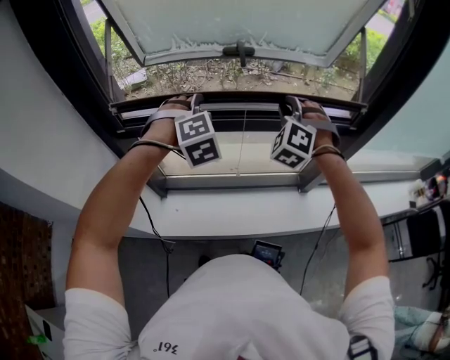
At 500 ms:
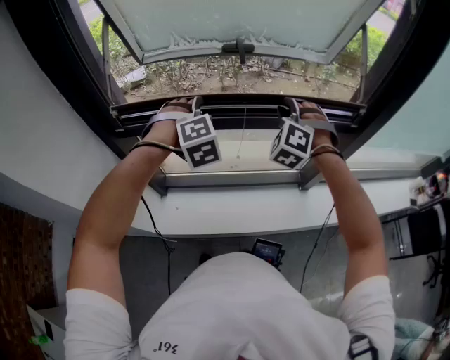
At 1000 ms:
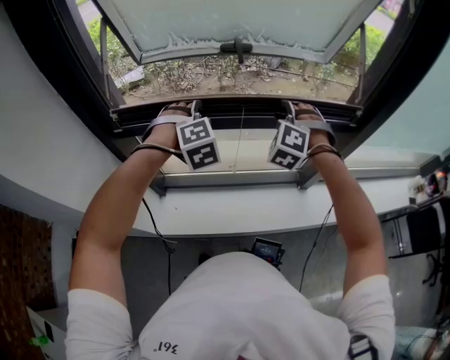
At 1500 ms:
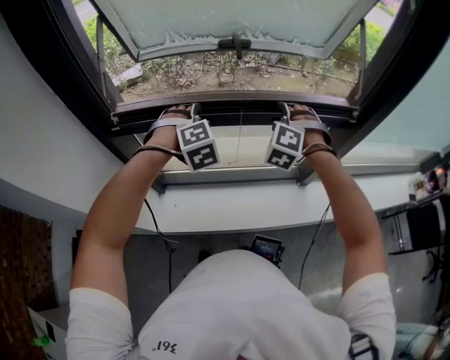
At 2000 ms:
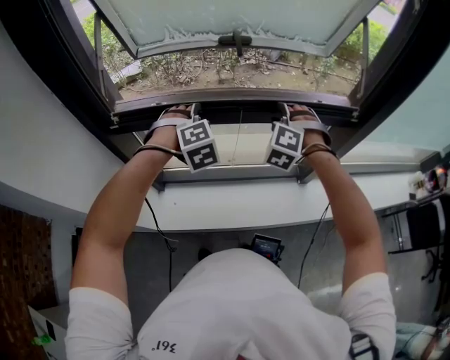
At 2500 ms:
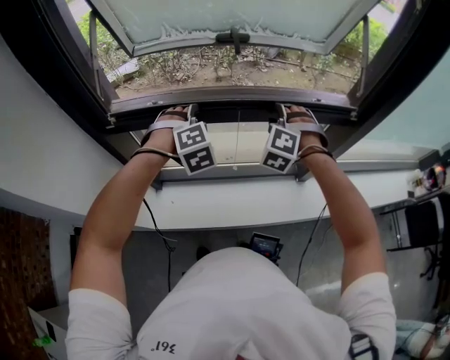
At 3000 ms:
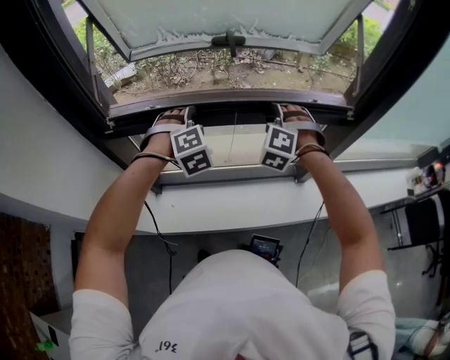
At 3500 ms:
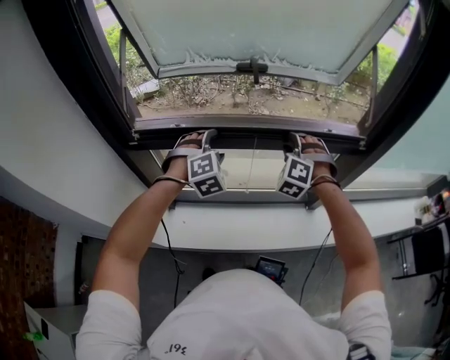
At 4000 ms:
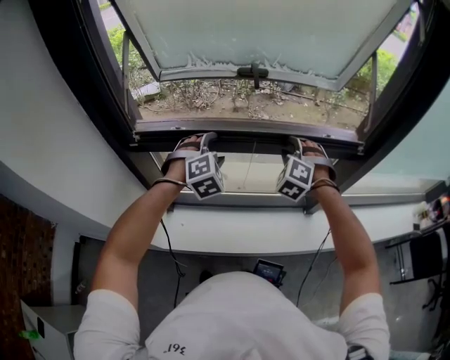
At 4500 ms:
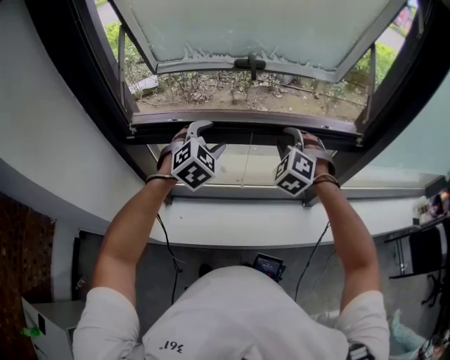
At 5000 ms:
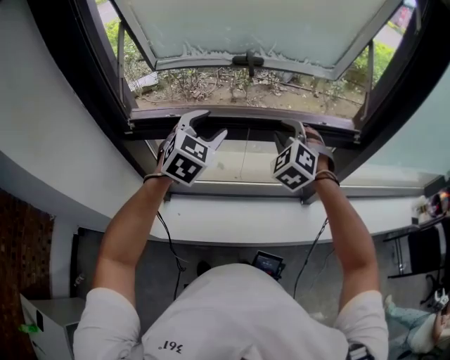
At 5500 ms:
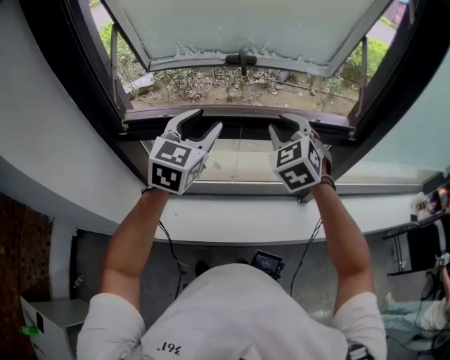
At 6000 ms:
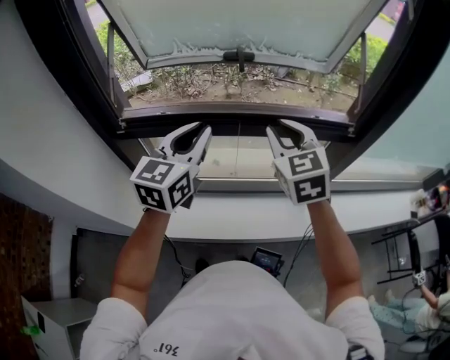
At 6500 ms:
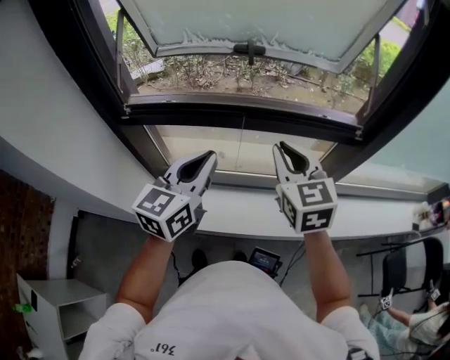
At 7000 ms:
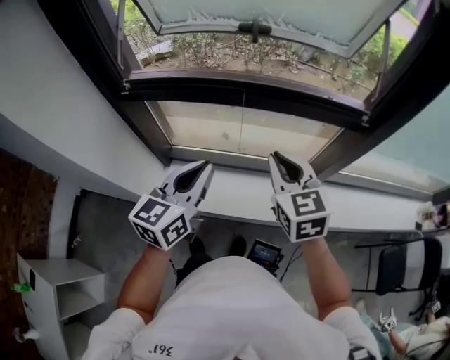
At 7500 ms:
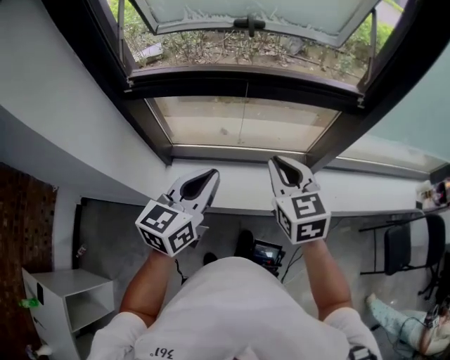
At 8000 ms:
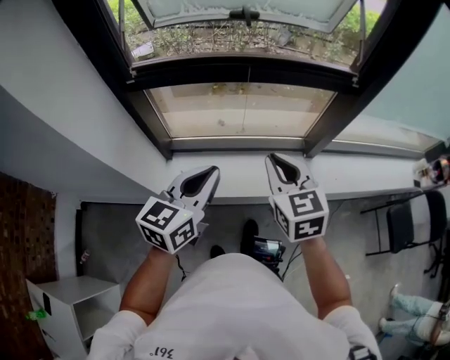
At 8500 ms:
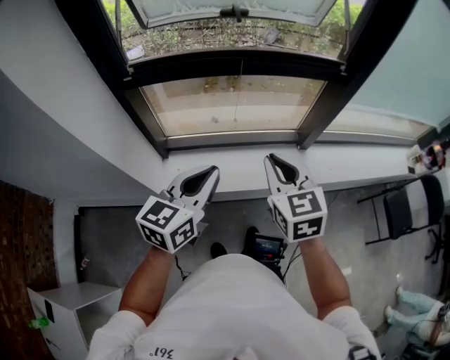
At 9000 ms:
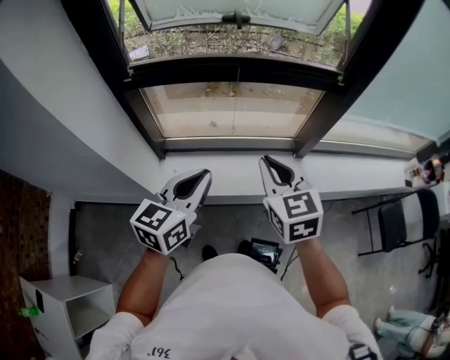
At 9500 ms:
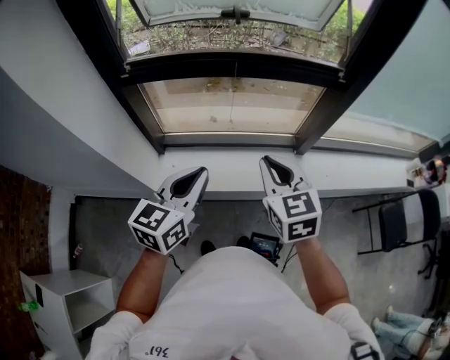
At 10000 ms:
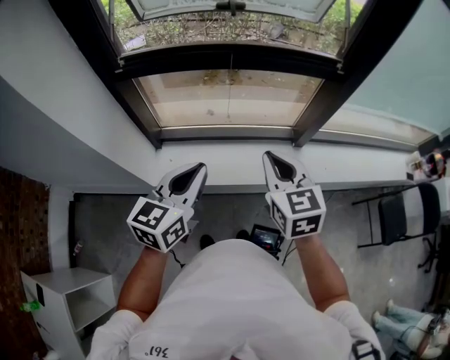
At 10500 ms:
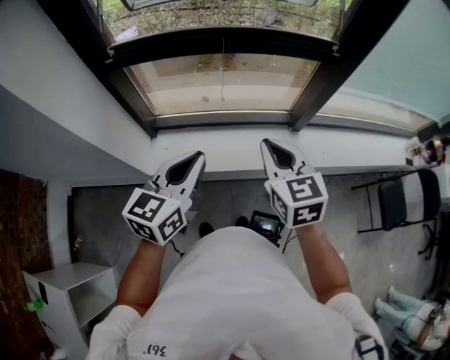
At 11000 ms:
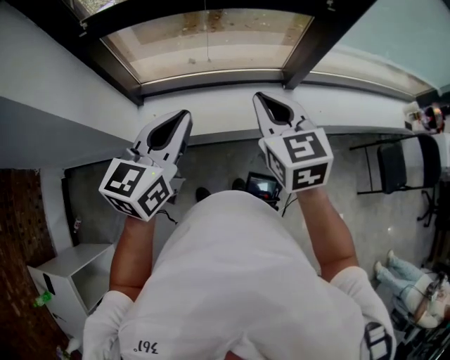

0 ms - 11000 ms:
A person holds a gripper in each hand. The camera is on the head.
0 ms - 2000 ms: The grippers both shift downward by some 10 cm.
2000 ms - 3500 ms: The grippers stay close to where they were, moving slightly.
3500 ms - 5500 ms: The grippers both shift upward by some 15 cm. The right gripper changes its angle by some 40 degrees; the left gripper rotates around the line of its fingers by roughly 50 degrees, counterclockwise from behind.
5500 ms - 7500 ms: The left gripper travels backward and downward by approximately 25 cm, swivels about 30 degrees, and closes up. Meanwhile the right gripper shifts about 20 cm backward, and turns by approximately 30 degrees.
7500 ms - 9000 ms: The two grippers go roughly 10 cm backward.
9000 ms - 11000 ms: The grippers stay close to where they were, moving slightly.

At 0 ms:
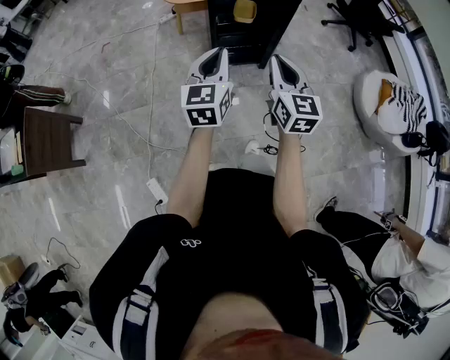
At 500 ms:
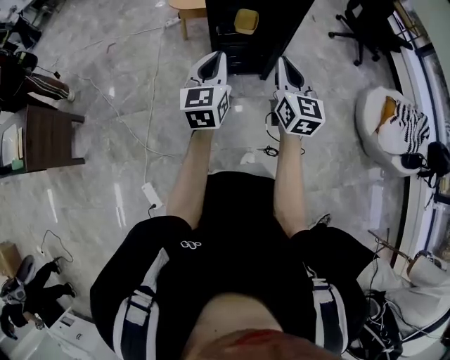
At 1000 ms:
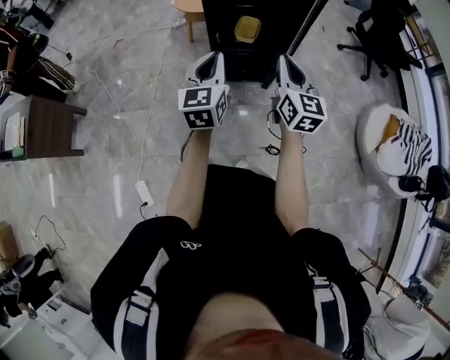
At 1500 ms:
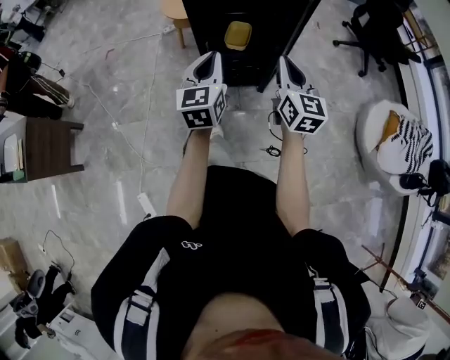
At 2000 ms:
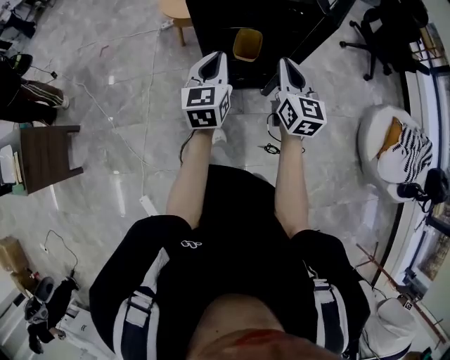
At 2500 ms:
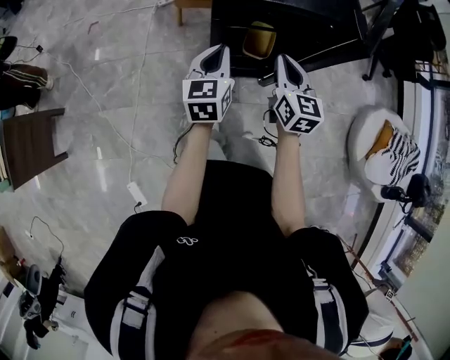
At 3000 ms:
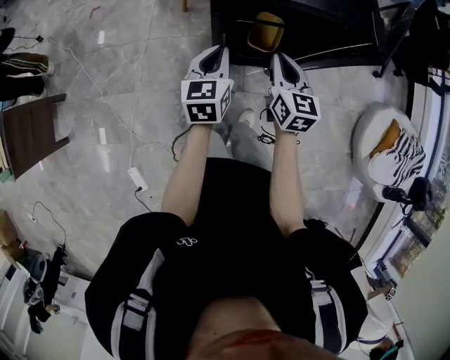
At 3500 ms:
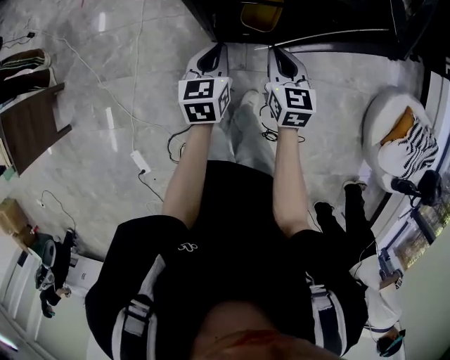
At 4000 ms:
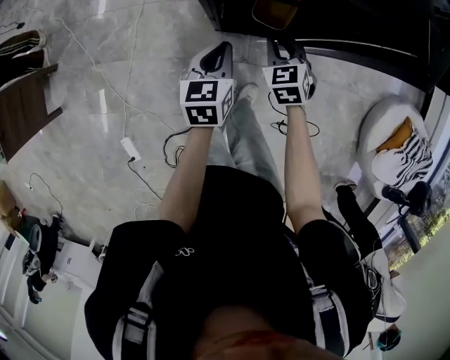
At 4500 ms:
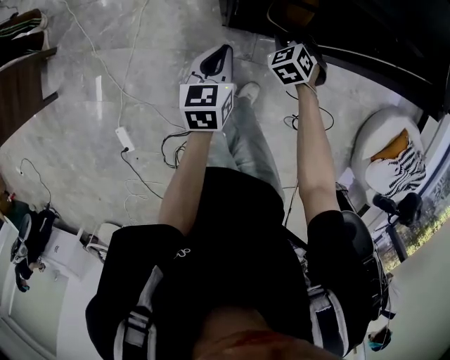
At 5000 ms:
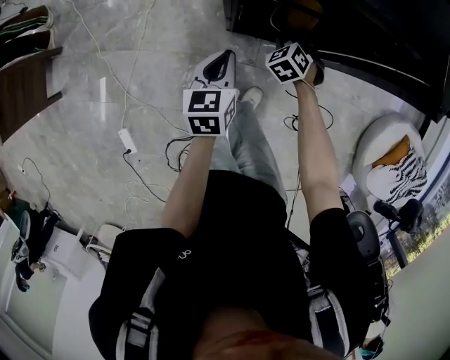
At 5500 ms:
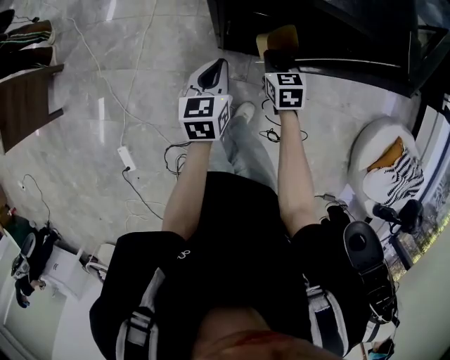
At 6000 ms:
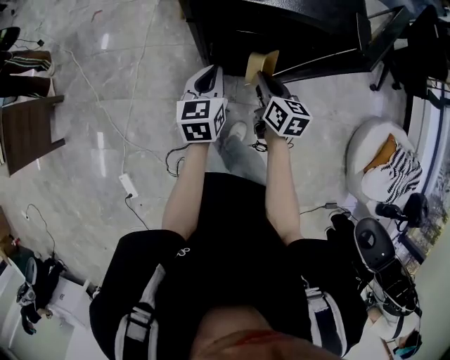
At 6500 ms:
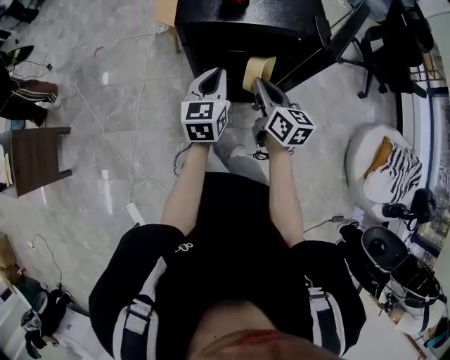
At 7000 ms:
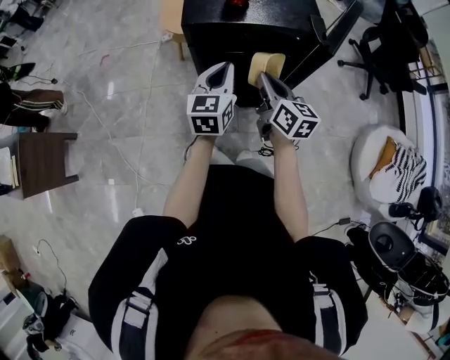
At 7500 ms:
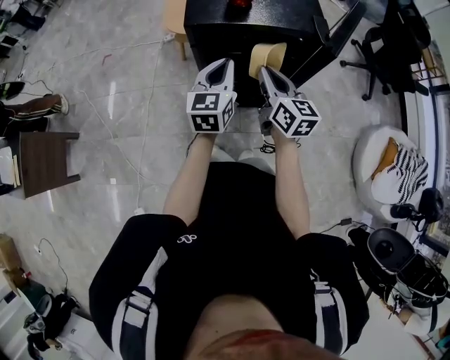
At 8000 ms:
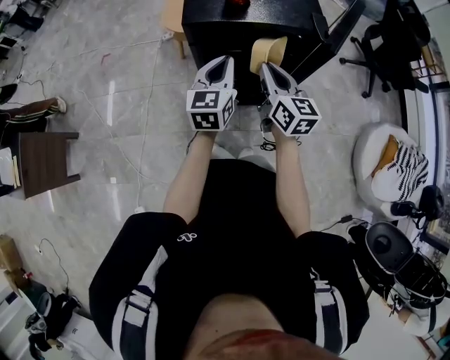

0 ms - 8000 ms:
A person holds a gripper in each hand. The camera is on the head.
0 ms - 2000 ms: Both grippers move forward, roughly 35 cm.
2000 ms - 4000 ms: The right gripper is displaced downward and forward by approximately 30 cm, and points its fingers roughly 40 degrees further downward, while the left gripper is displaced downward by about 20 cm, and turns by roughly 20 degrees.
4000 ms - 6000 ms: Both grippers travel together upward, some 10 cm. The right gripper rolls clockwise, seen from behind, by some 50 degrees.
6000 ms - 8000 ms: The right gripper heads upward, covering about 15 cm, and swivels approximately 20 degrees; the left gripper moves upward and to the right, roughly 15 cm.

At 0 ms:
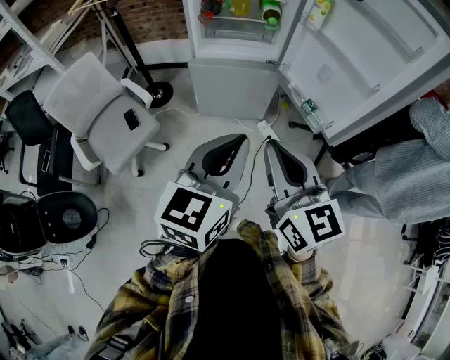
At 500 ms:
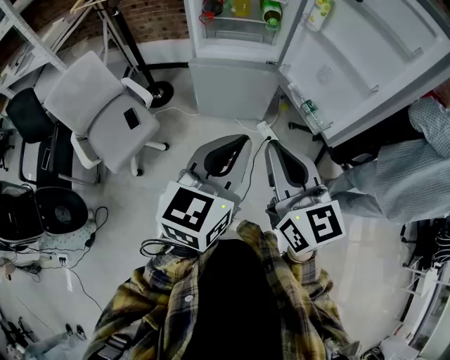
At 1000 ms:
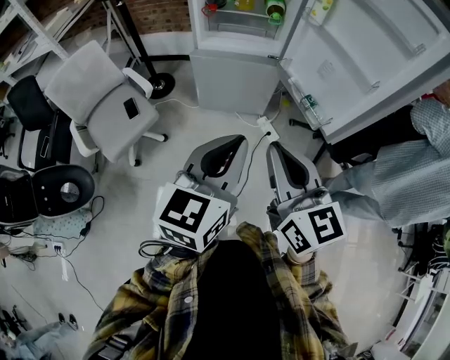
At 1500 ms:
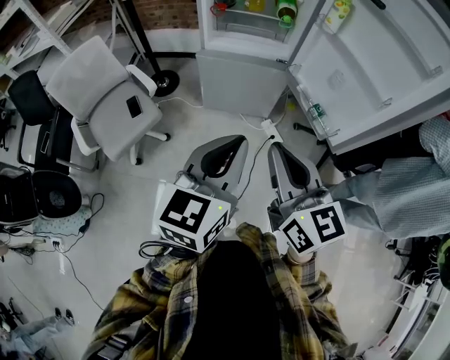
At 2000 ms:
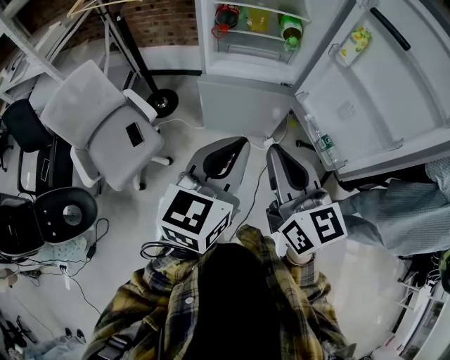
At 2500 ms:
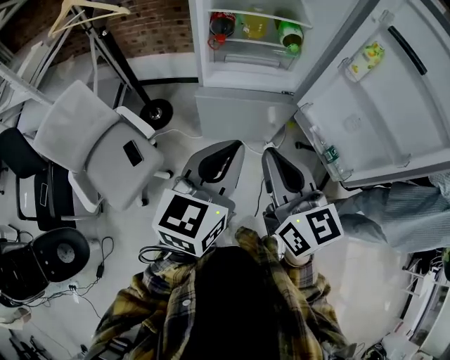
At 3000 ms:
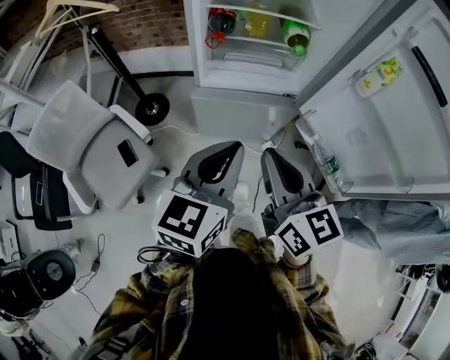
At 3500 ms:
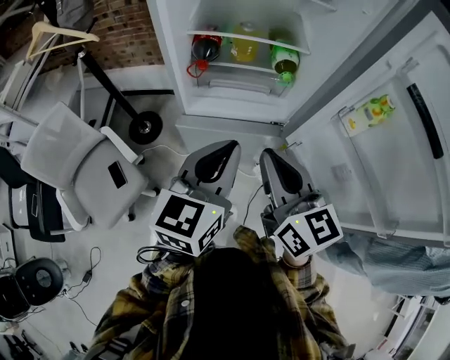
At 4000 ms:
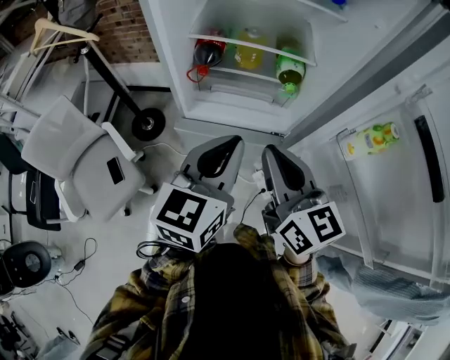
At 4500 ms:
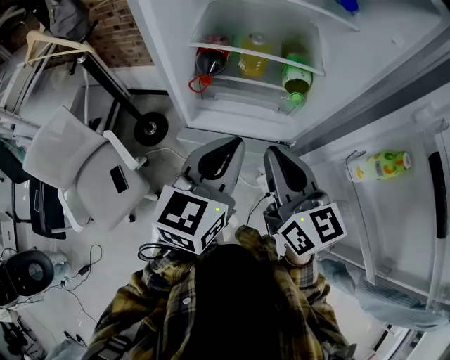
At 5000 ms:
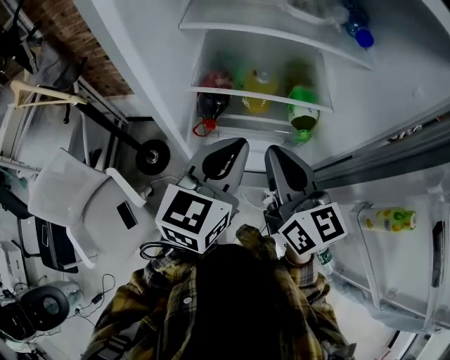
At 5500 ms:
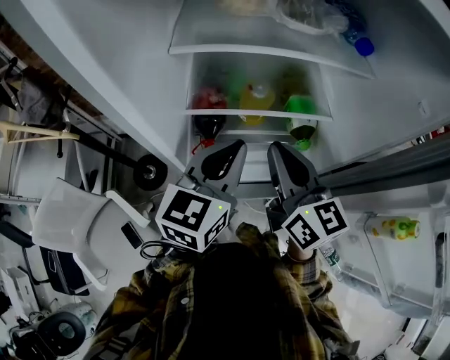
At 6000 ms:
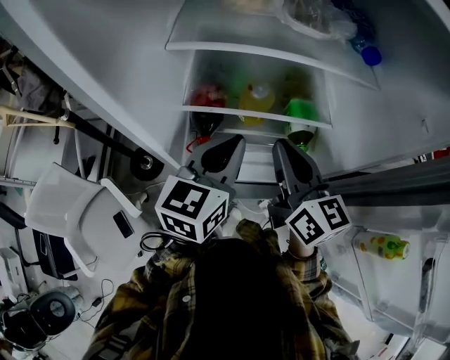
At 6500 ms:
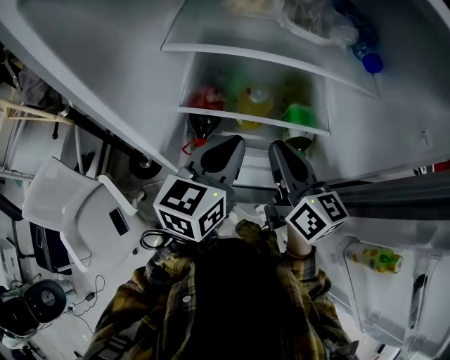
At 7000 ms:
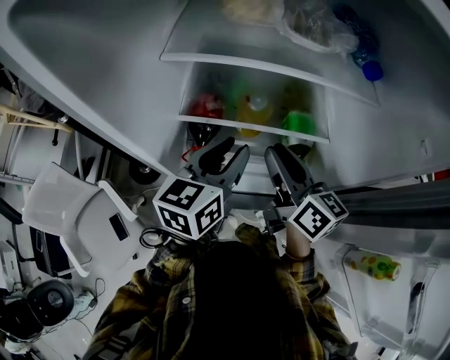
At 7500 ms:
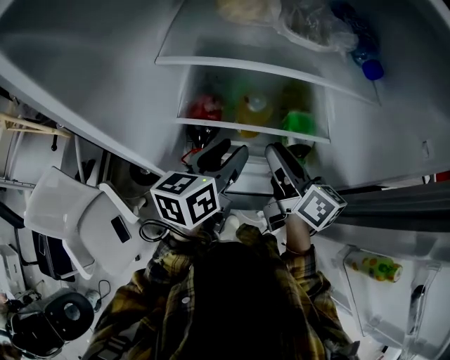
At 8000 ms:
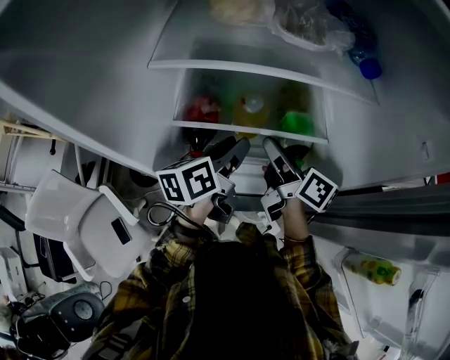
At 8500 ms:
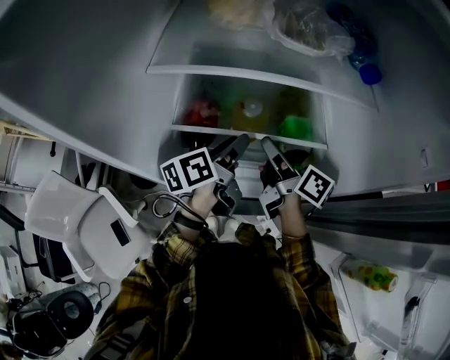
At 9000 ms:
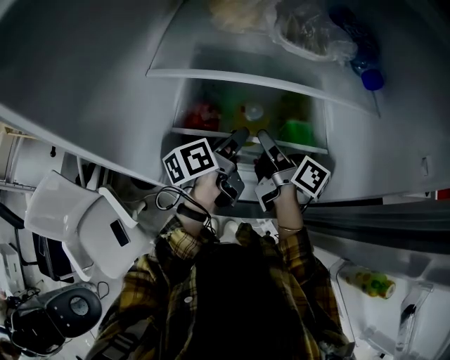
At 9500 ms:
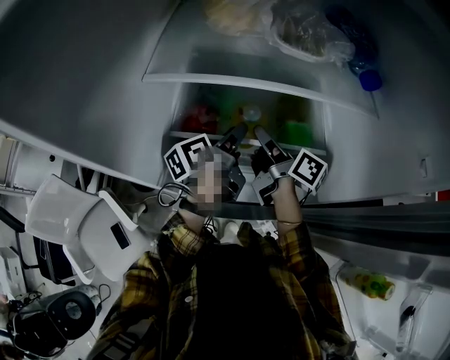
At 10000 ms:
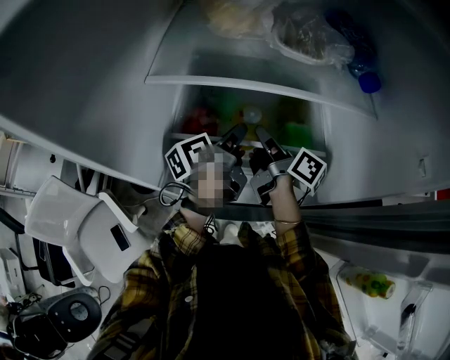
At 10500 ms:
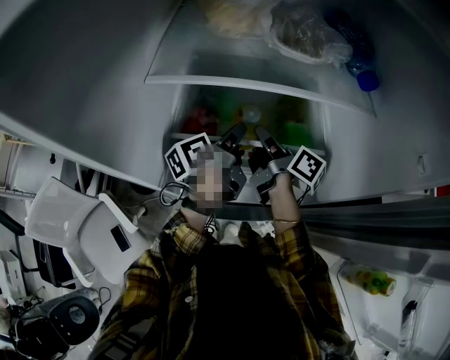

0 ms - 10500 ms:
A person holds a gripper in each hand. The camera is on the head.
0 ms - 2000 ms: The grippers both shift forward by about 15 cm.
2000 ms - 4000 ms: Both grippers travel together forward, roughly 30 cm.
4000 ms - 6500 ms: Both grippers move forward, approximately 25 cm.
6500 ms - 8500 ms: The left gripper shifts some 10 cm downward and forward, twists approximately 40 degrees counterclockwise, seen from behind, and opens its fingers; the right gripper shifts roughly 10 cm forward and downward, swivels about 40 degrees, and opens its fingers.
8500 ms - 10500 ms: The two grippers go some 5 cm forward. The left gripper closes its fingers.
